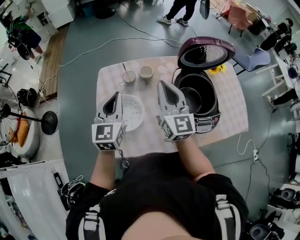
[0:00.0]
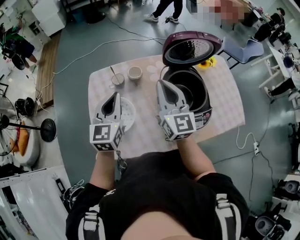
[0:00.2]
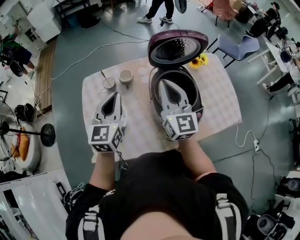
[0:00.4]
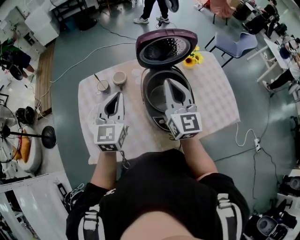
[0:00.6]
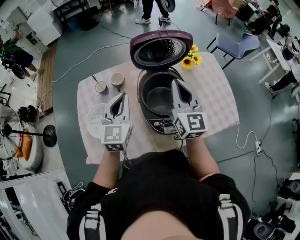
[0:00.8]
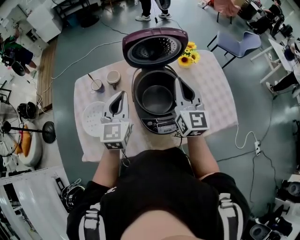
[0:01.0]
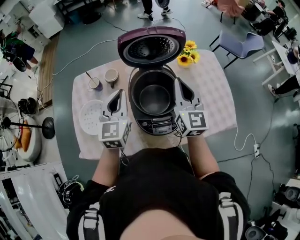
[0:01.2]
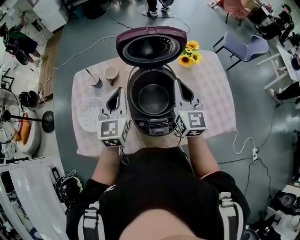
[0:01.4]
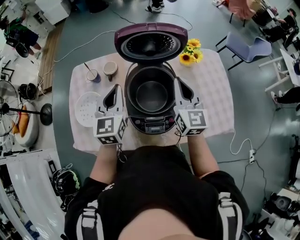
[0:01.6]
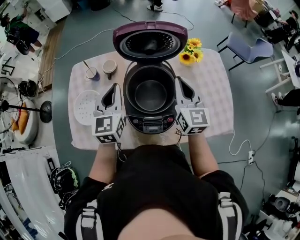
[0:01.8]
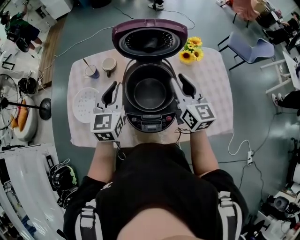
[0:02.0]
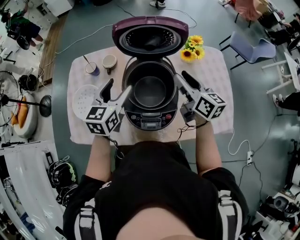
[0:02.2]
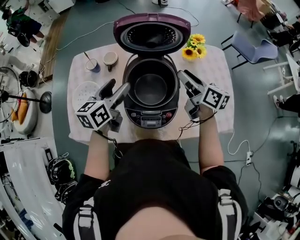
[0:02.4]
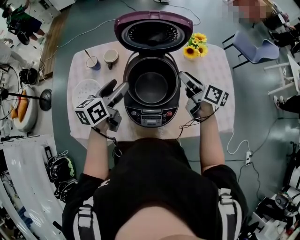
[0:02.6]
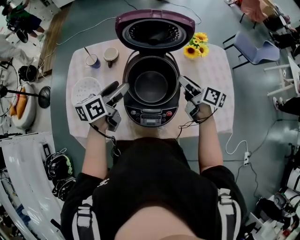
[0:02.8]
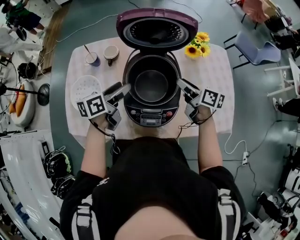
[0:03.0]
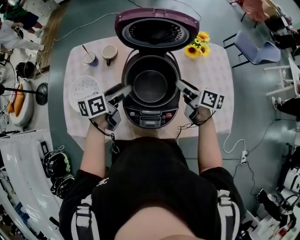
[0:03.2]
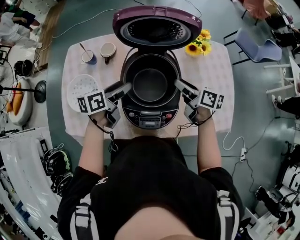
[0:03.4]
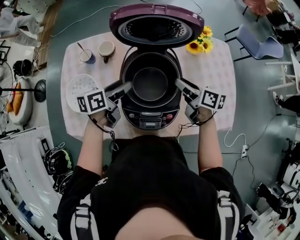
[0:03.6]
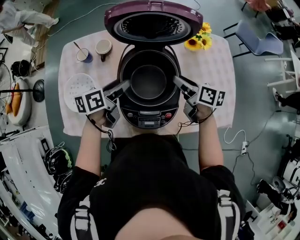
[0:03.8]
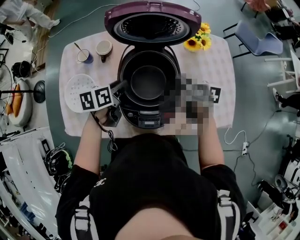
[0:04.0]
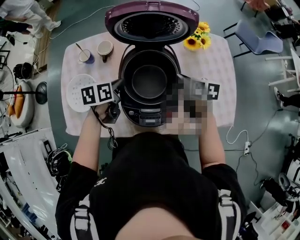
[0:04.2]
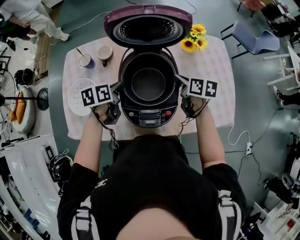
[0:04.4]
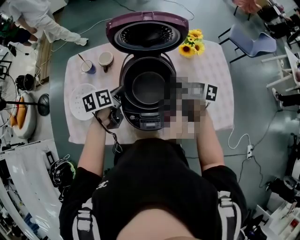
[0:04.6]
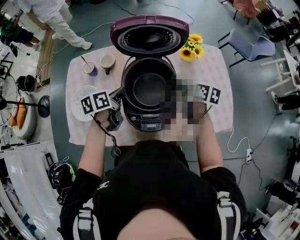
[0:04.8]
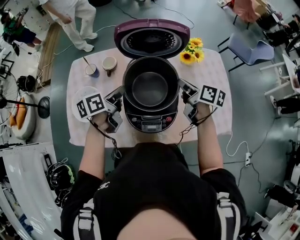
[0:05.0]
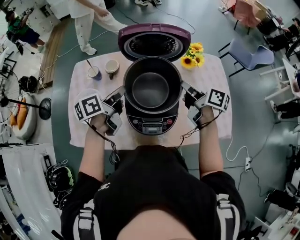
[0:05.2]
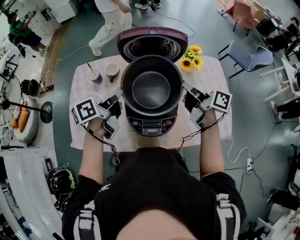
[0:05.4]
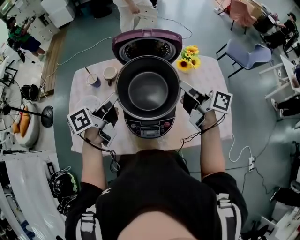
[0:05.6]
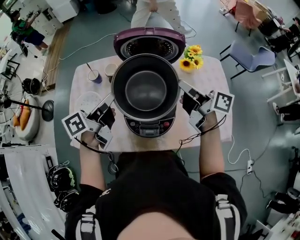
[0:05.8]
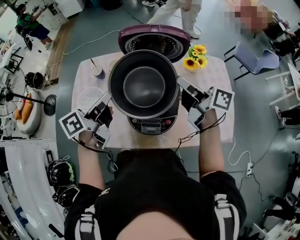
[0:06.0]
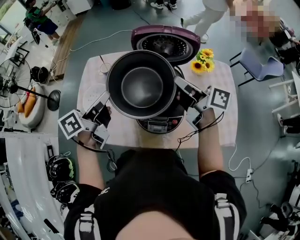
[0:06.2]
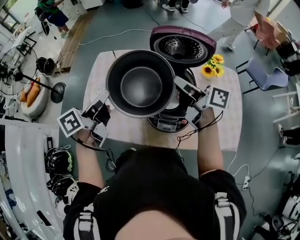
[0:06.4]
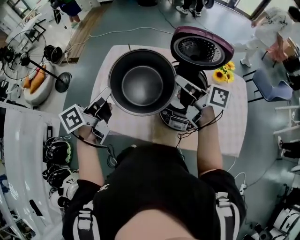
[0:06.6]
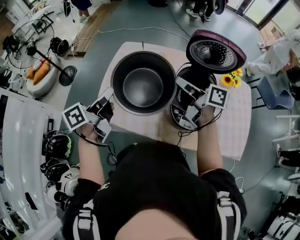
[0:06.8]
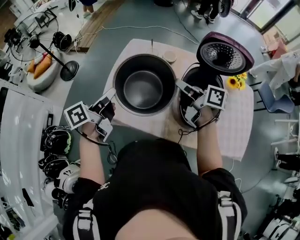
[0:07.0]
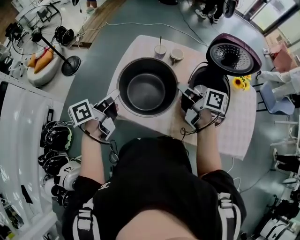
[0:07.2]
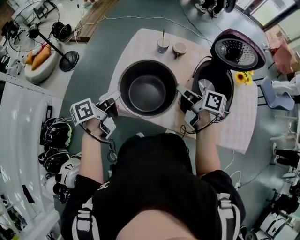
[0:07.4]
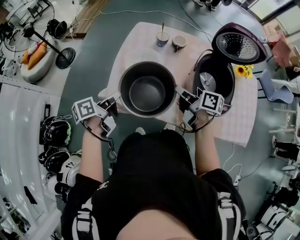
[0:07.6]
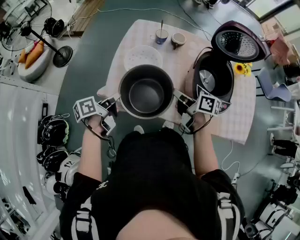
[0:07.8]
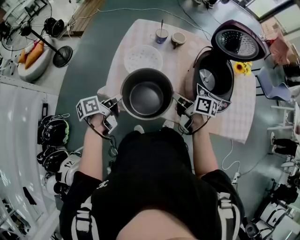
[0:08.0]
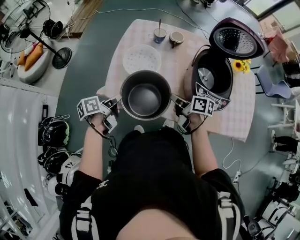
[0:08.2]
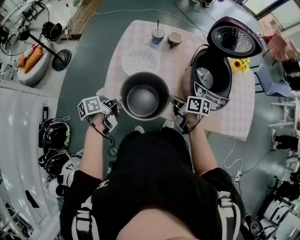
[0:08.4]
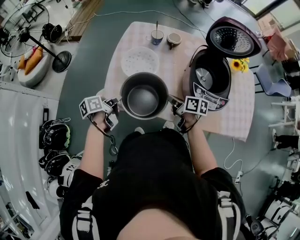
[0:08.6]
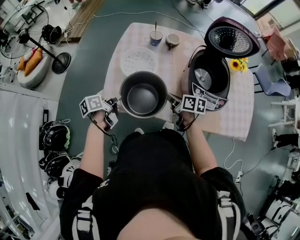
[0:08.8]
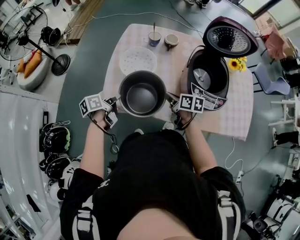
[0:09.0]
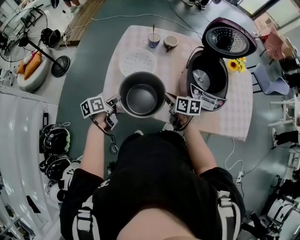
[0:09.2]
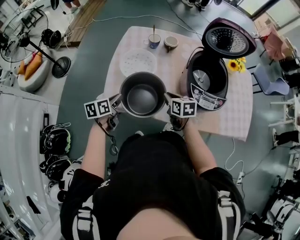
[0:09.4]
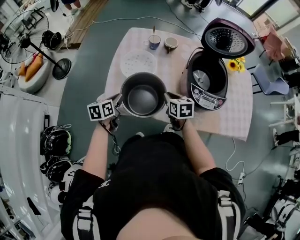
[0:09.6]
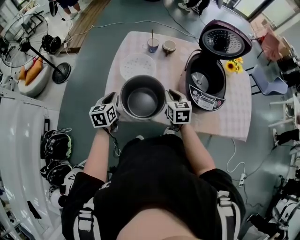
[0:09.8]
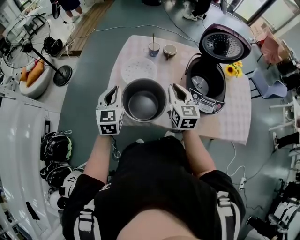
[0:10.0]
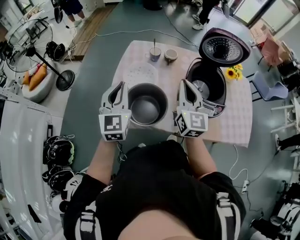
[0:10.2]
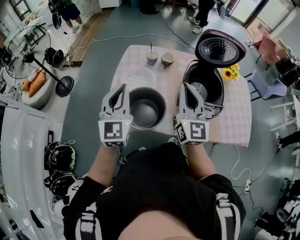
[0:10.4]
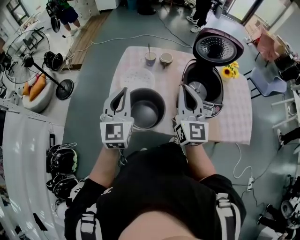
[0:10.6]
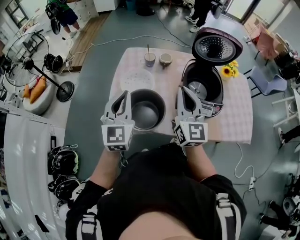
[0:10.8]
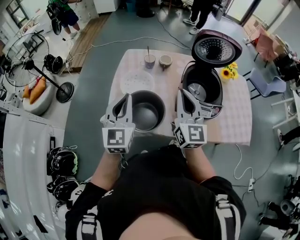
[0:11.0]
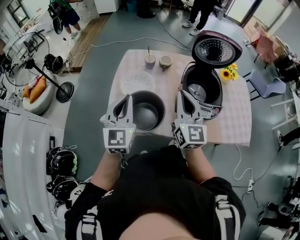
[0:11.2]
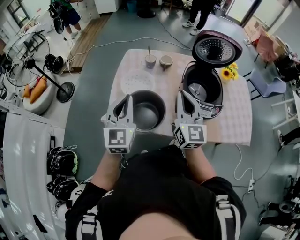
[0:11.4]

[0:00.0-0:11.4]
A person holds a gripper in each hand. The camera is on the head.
0:00.0 to 0:01.4: The two grippers go approximately 30 cm to the right.
0:01.4 to 0:02.8: Both grippers move downward, some 10 cm. The left gripper rolls counterclockwise, seen from behind, by roughly 40 degrees, and opens its fingers. Meanwhile the right gripper rolls clockwise, seen from behind, by some 50 degrees, and opens up.
0:02.8 to 0:04.2: The right gripper goes some 5 cm downward, turns by about 30 degrees, and closes up. The left gripper moves downward, some 10 cm, turns by roughly 20 degrees, and closes.
0:04.2 to 0:05.6: Both grippers travel together upward, about 20 cm. The left gripper tilts its fingers about 40 degrees upward. Meanwhile the right gripper tips its fingers upward by some 40 degrees.
0:05.6 to 0:07.2: Both grippers move to the left, roughly 35 cm. The right gripper turns by approximately 30 degrees, while the left gripper swivels roughly 20 degrees.
0:07.2 to 0:08.6: The right gripper shifts approximately 20 cm downward and backward, and swivels approximately 20 degrees. The left gripper goes approximately 20 cm downward, and rotates roughly 20 degrees.
0:08.6 to 0:10.0: The grippers both shift upward by approximately 15 cm. The left gripper rotates around the line of its fingers by about 70 degrees, clockwise from behind. The right gripper turns by roughly 60 degrees.
0:10.0 to 0:11.4: The left gripper moves upward and to the right, about 10 cm. Meanwhile the right gripper travels upward by some 10 cm, and changes its angle by approximately 20 degrees.

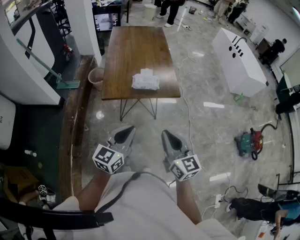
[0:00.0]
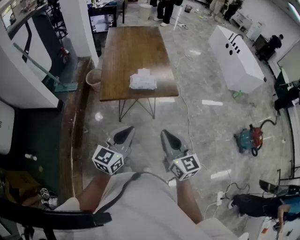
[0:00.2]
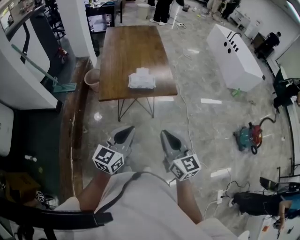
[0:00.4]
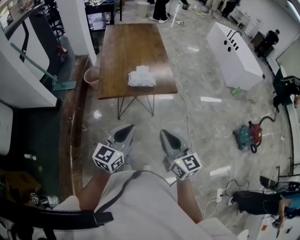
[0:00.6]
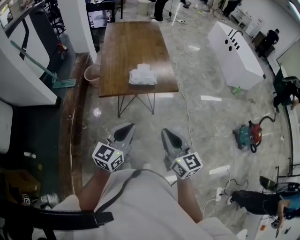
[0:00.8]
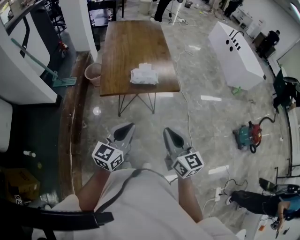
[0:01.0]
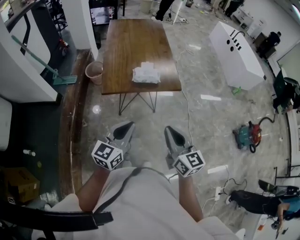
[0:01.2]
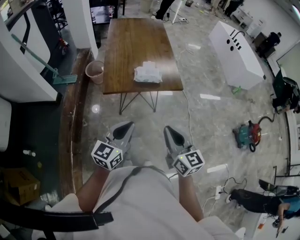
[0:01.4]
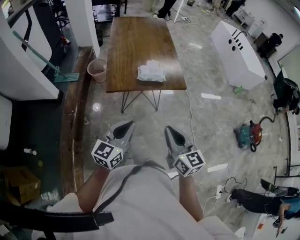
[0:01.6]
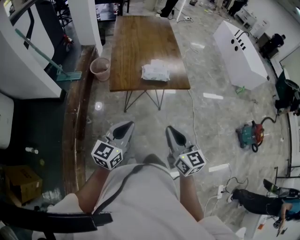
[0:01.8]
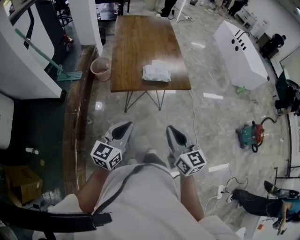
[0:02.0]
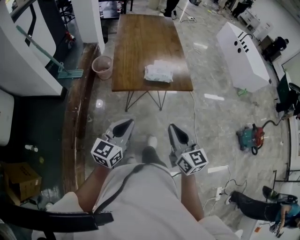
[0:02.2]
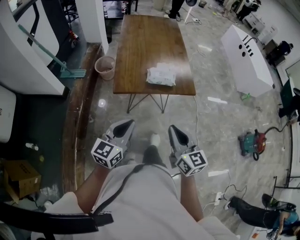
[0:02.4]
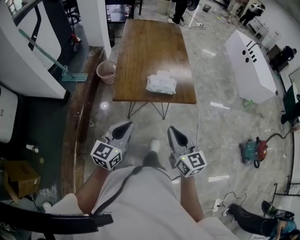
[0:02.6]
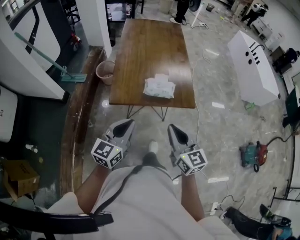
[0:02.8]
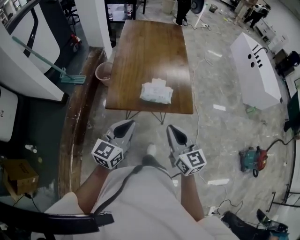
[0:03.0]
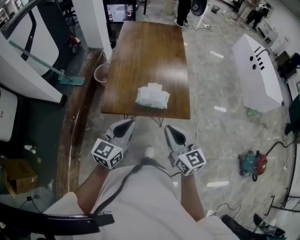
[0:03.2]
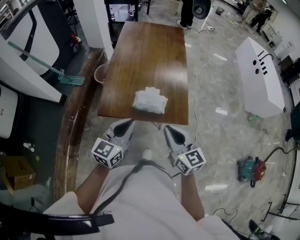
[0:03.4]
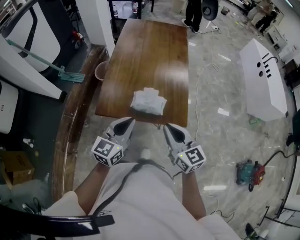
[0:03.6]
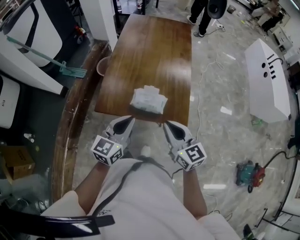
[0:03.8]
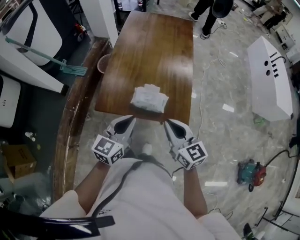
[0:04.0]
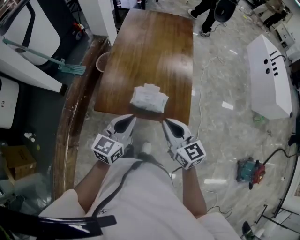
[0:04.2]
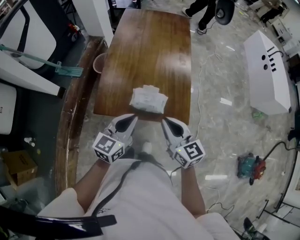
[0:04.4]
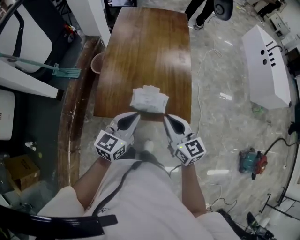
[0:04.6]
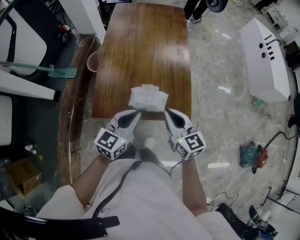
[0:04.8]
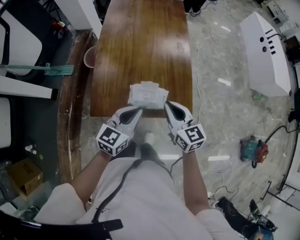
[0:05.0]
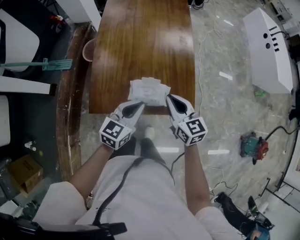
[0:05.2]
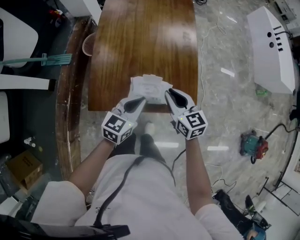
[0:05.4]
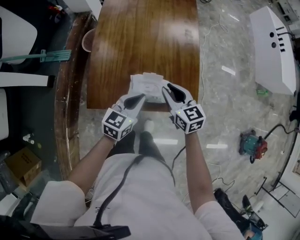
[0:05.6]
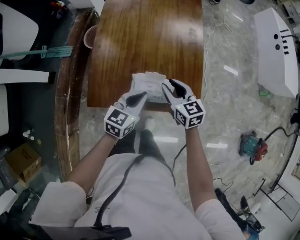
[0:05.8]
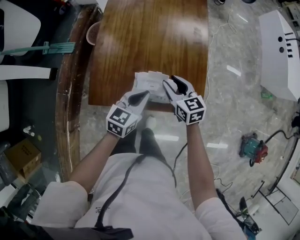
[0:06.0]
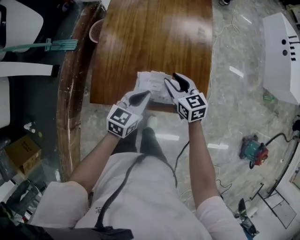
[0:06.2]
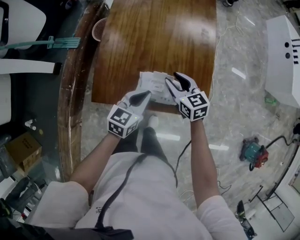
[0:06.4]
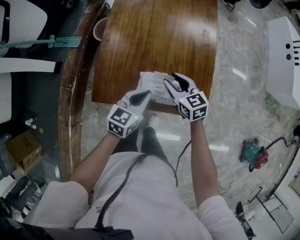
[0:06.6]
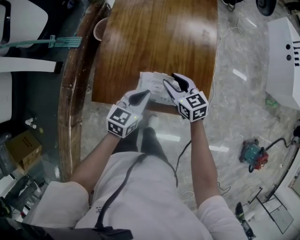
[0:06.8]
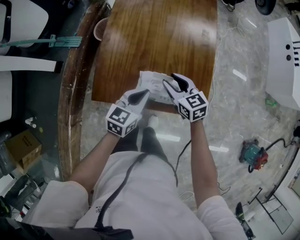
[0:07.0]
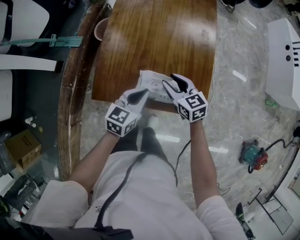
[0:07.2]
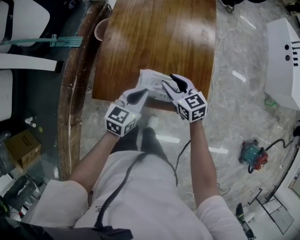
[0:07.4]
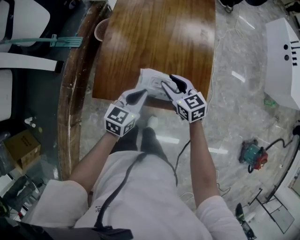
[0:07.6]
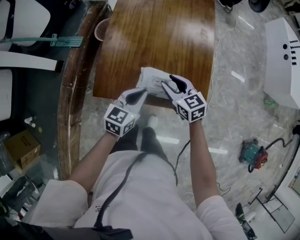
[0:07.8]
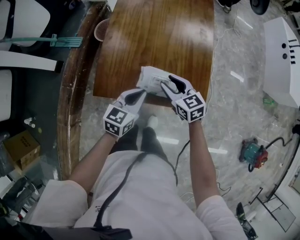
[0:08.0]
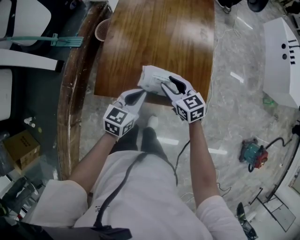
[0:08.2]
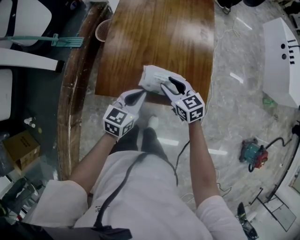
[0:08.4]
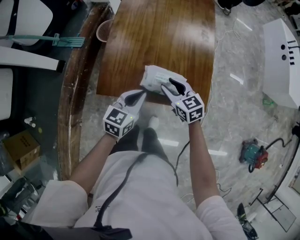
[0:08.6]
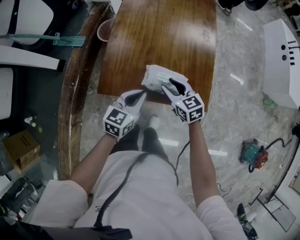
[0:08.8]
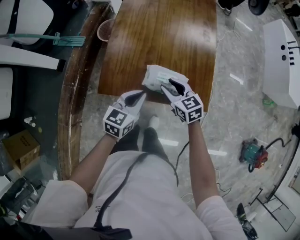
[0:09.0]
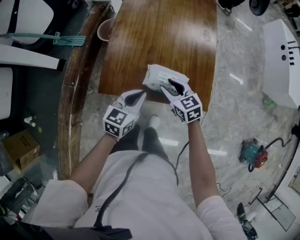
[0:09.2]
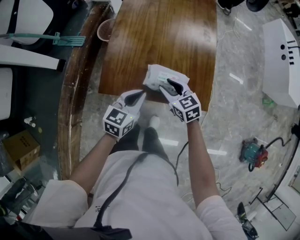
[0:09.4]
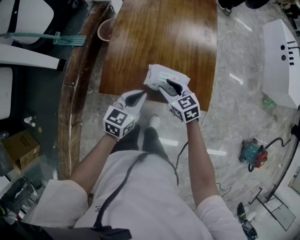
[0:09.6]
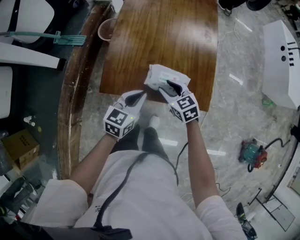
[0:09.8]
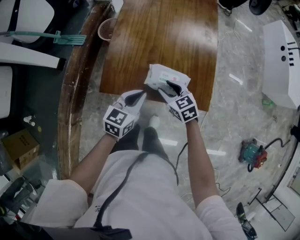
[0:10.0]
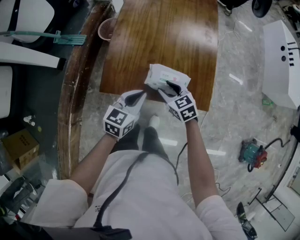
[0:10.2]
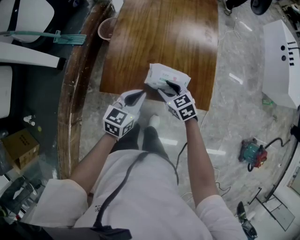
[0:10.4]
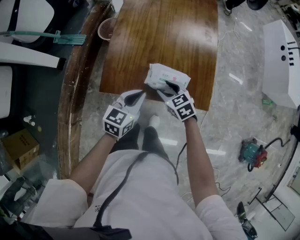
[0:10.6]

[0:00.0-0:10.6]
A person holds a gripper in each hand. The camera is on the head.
0:00.0 to 0:01.6: The grippers both shift to the left by roughly 5 cm.
0:01.6 to 0:03.0: Both grippers move forward, approximately 20 cm.
0:03.0 to 0:04.6: The right gripper is displaced forward by approximately 15 cm. The left gripper is displaced forward and to the right by roughly 20 cm.
0:04.6 to 0:06.0: The two grippers go some 20 cm downward and forward. The right gripper opens.
0:06.0 to 0:07.6: The grippers make only small movements.
0:07.6 to 0:09.0: The left gripper ends up some 5 cm from where it was. Meanwhile the right gripper ends up about 5 cm from where it was.
0:09.0 to 0:10.6: The grippers move only a little.

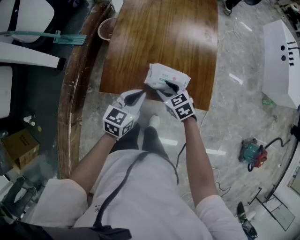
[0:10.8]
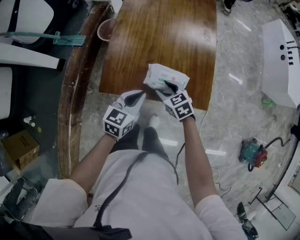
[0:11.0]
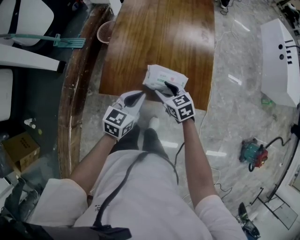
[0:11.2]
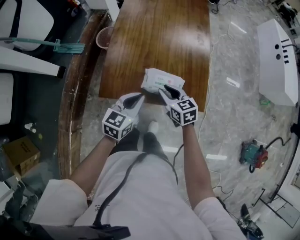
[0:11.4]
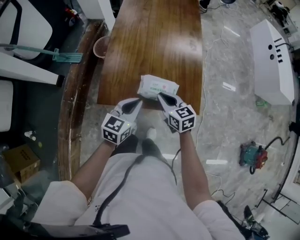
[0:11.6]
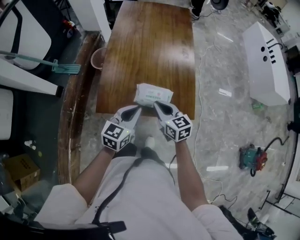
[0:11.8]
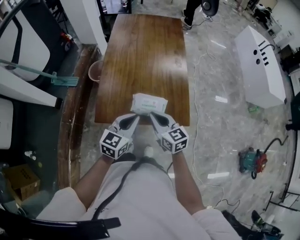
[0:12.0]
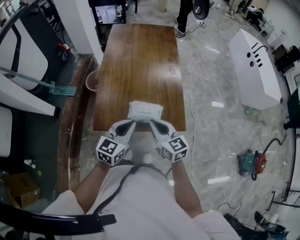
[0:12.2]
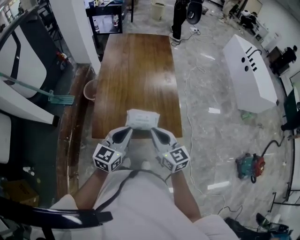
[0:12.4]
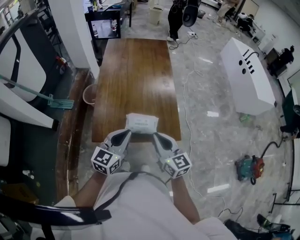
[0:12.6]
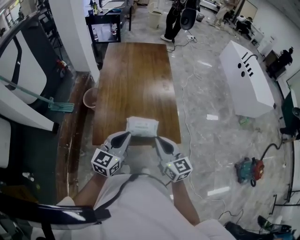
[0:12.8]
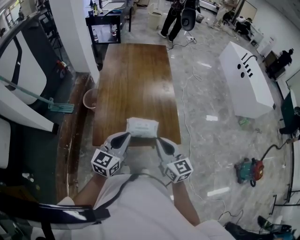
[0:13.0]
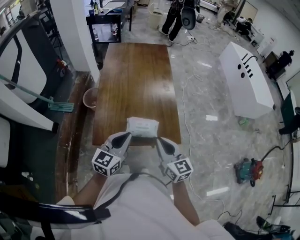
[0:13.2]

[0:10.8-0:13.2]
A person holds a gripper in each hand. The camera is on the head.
0:10.8 to 0:12.0: The right gripper shifts roughly 15 cm upward, changes its angle by about 30 degrees, and closes; the left gripper goes some 10 cm upward.
0:12.0 to 0:13.2: The right gripper heads upward and to the right, covering some 10 cm. Meanwhile the left gripper goes some 10 cm upward.
